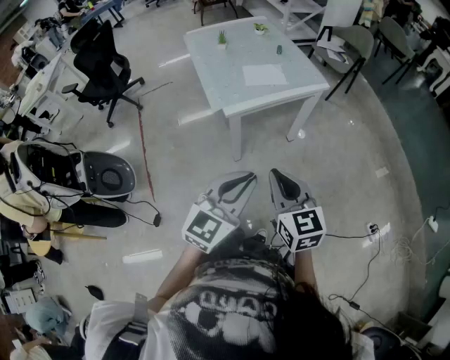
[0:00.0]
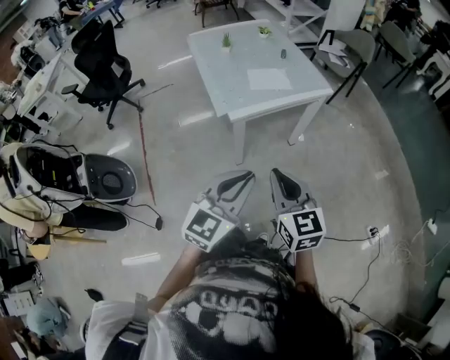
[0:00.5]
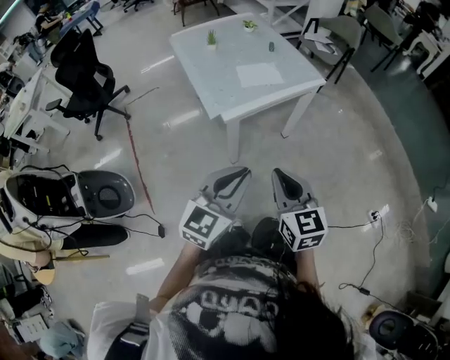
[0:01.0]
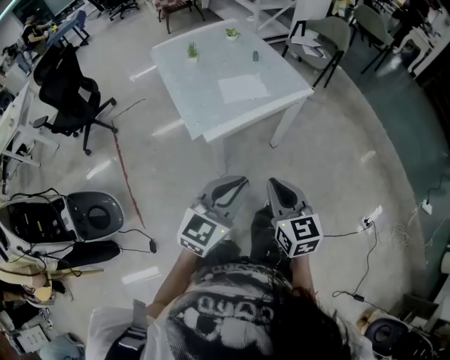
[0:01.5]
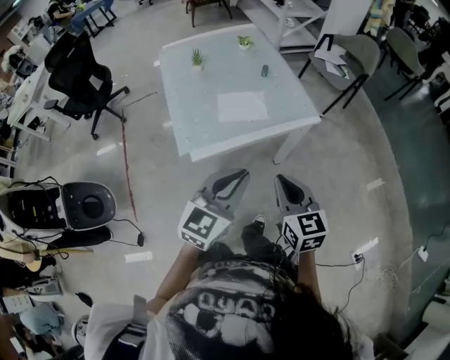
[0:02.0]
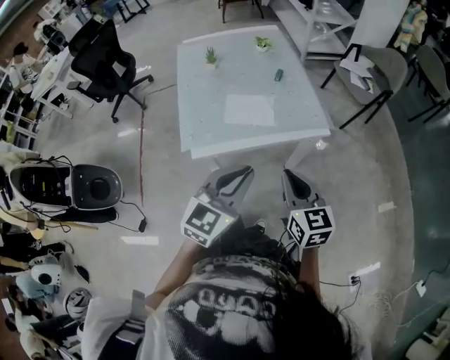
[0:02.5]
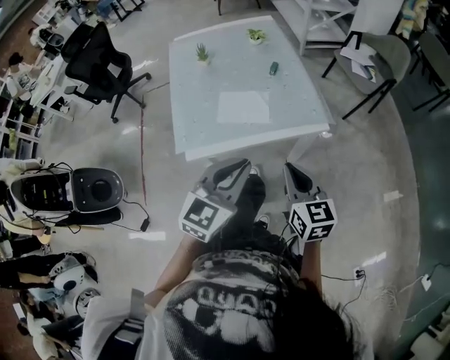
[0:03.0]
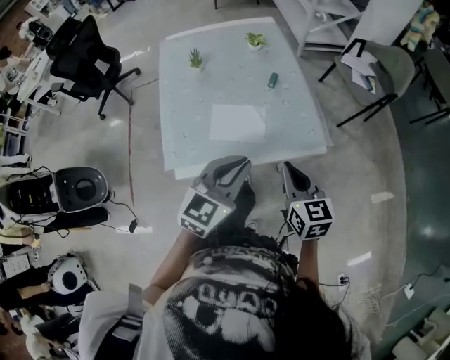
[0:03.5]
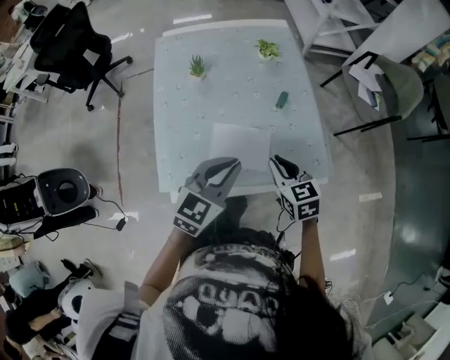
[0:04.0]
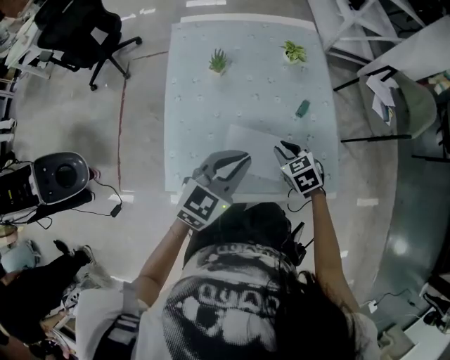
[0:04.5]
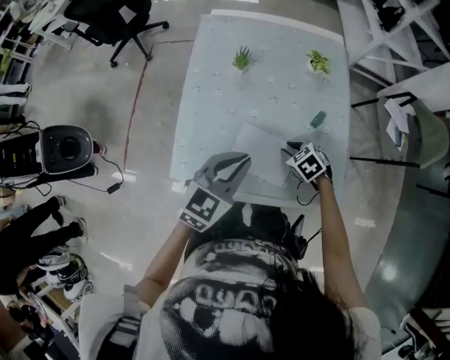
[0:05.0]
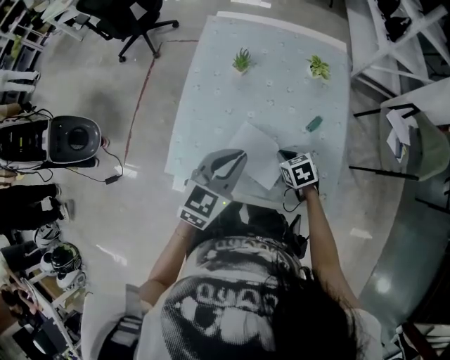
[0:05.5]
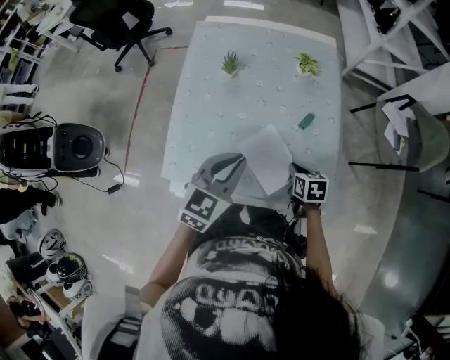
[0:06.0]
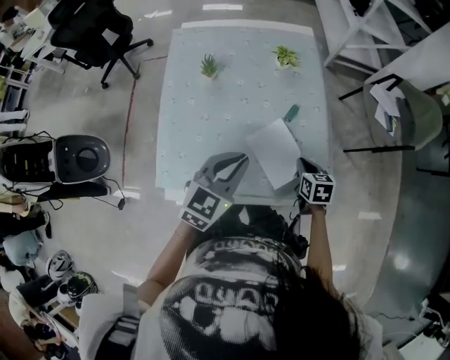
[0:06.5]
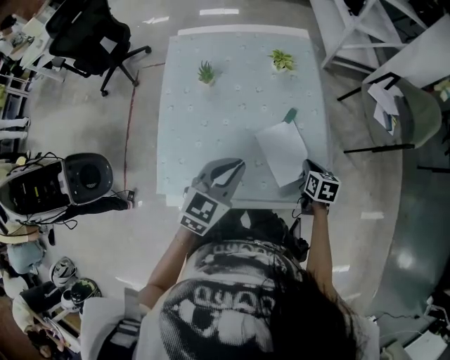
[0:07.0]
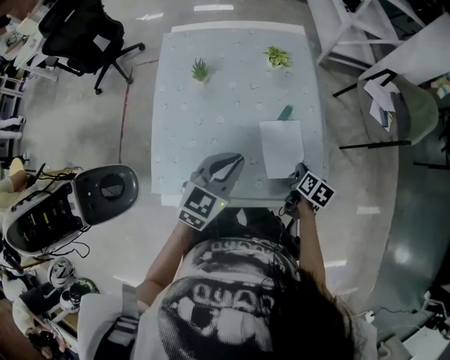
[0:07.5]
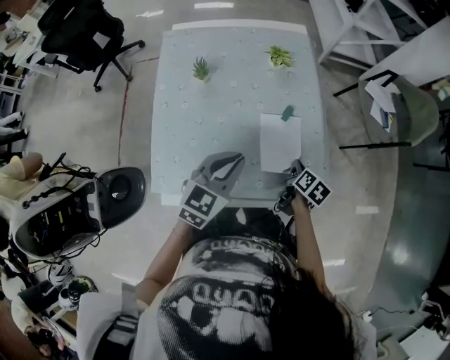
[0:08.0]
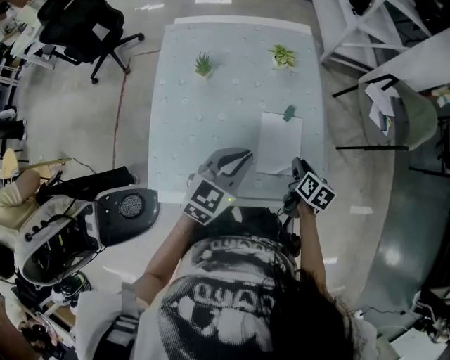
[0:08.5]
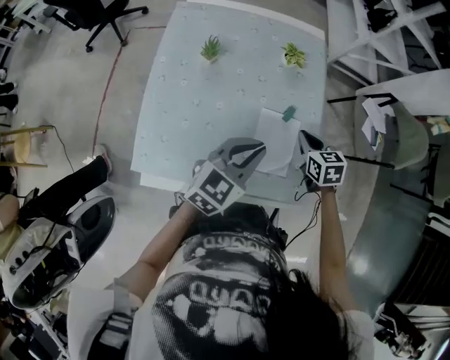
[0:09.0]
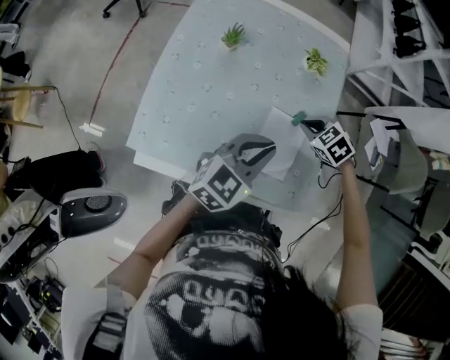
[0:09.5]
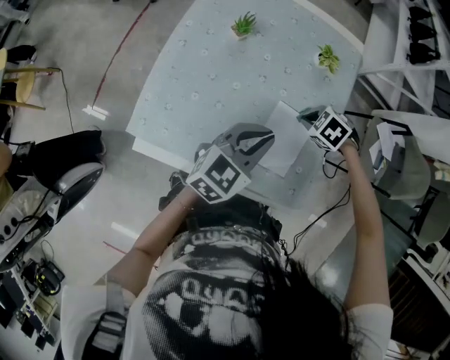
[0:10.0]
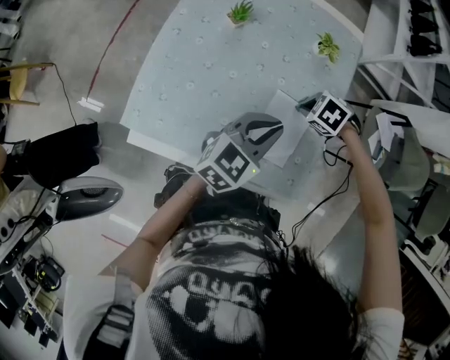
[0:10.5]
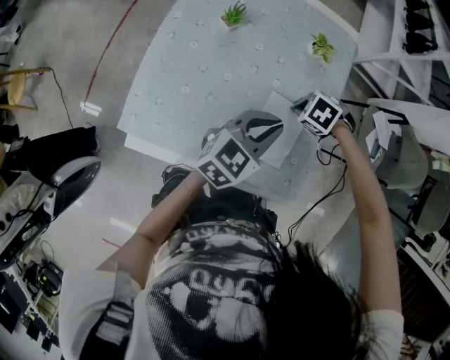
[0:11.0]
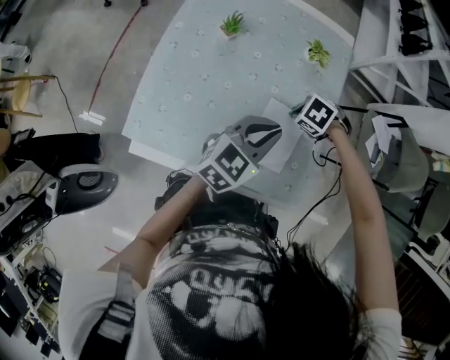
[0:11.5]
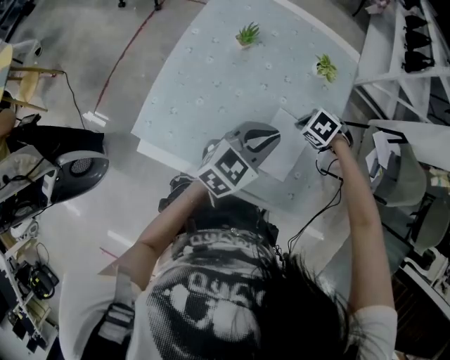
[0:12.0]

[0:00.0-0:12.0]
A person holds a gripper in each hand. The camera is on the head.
0:00.0 to 0:02.0: The two grippers go some 30 cm forward.
0:02.0 to 0:04.0: The grippers both shift forward by some 30 cm. The right gripper changes its angle by approximately 30 degrees.
0:04.0 to 0:06.0: The left gripper travels forward by some 5 cm, while the right gripper moves downward, to the right and forward, approximately 15 cm, and swivels some 30 degrees.
0:06.0 to 0:08.0: The right gripper shifts roughly 10 cm to the right, and turns by roughly 50 degrees; the left gripper changes place by approximately 5 cm.
0:08.0 to 0:10.0: The left gripper moves approximately 5 cm; the right gripper goes upward and returns, approximately 10 cm each way, rotates around the line of its fingers by some 110 degrees, counterclockwise from behind, and opens and closes again.
0:10.0 to 0:12.0: The grippers stay close to where they were, moving slightly.

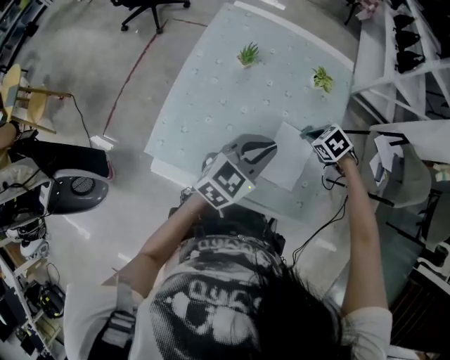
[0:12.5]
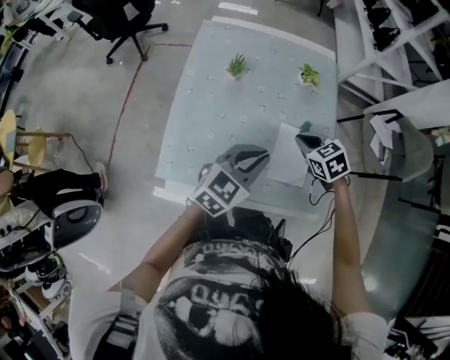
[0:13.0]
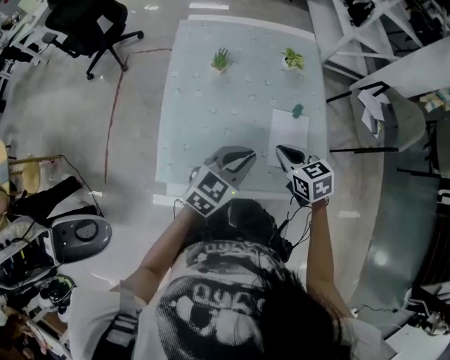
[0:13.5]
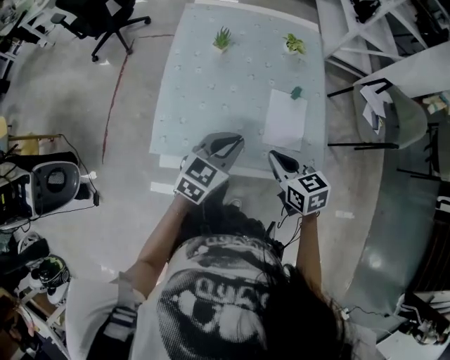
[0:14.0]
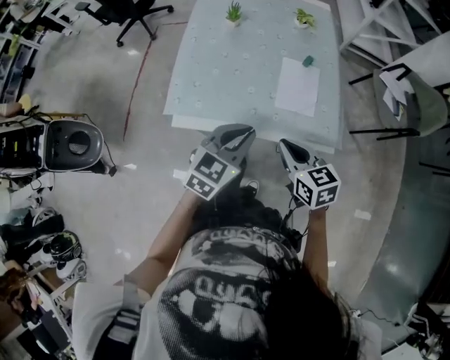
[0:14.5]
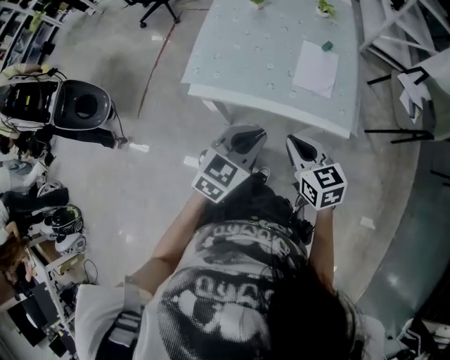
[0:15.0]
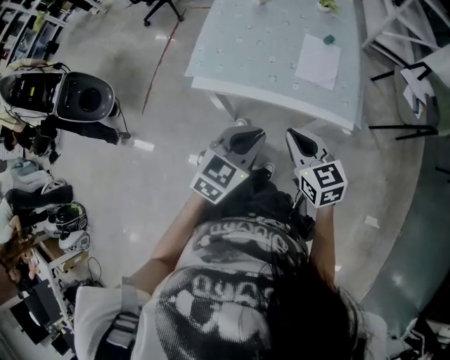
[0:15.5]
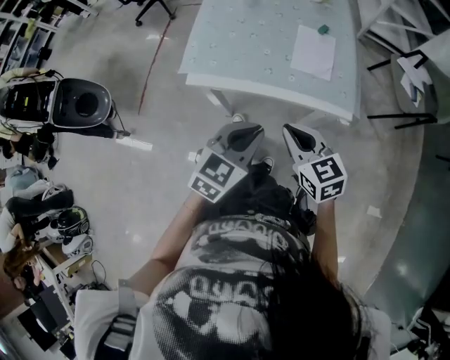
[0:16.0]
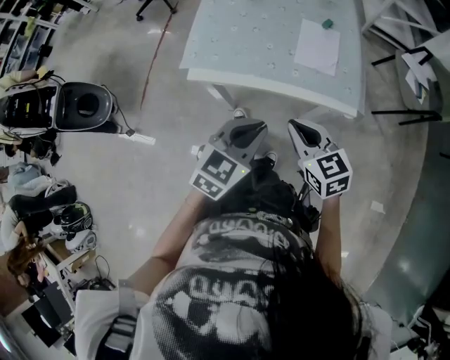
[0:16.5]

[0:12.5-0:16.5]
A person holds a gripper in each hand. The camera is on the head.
0:12.5 to 0:14.5: The left gripper moves roughly 20 cm, while the right gripper moves about 35 cm, and tips its fingers upward by about 50 degrees.
0:14.5 to 0:16.5: Both grippers move backward, approximately 10 cm.

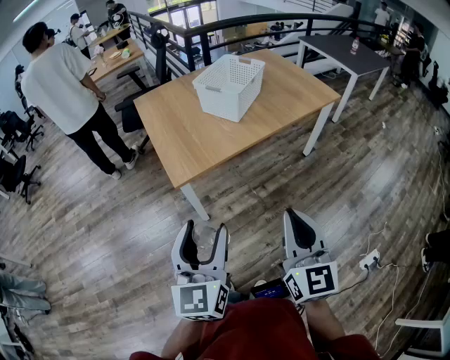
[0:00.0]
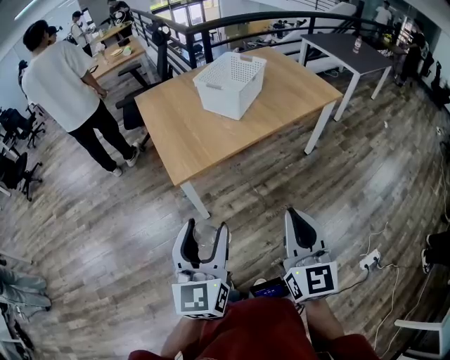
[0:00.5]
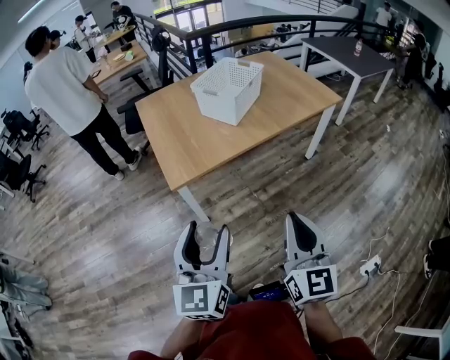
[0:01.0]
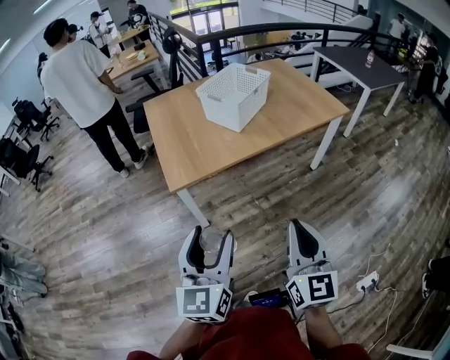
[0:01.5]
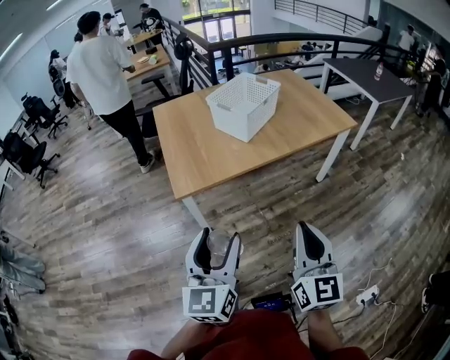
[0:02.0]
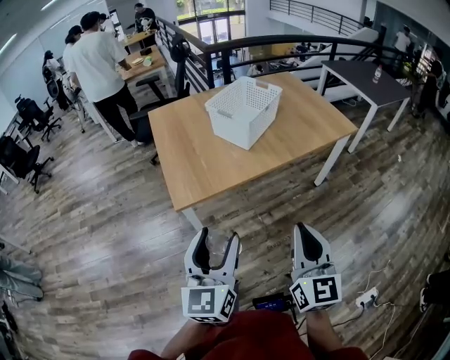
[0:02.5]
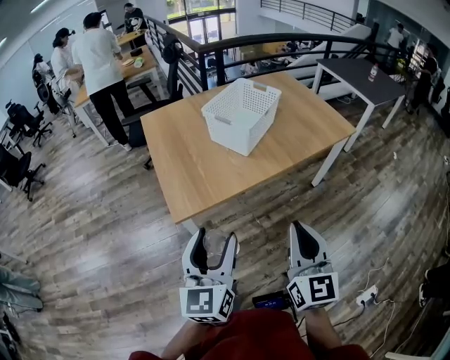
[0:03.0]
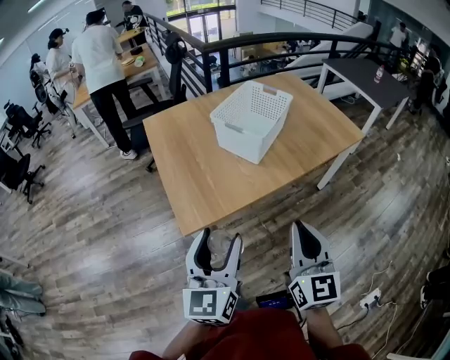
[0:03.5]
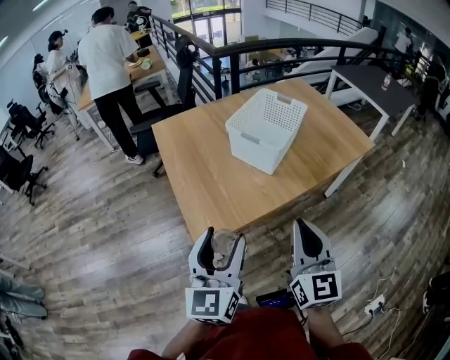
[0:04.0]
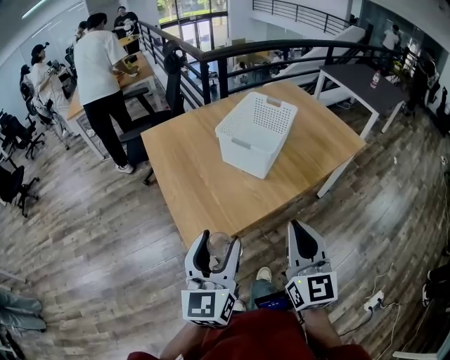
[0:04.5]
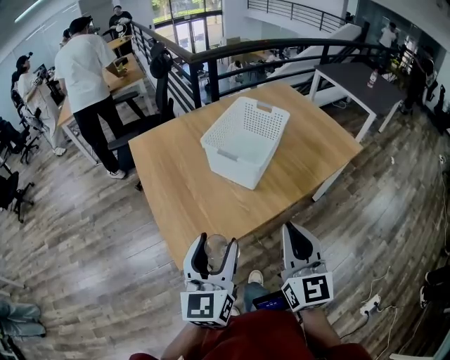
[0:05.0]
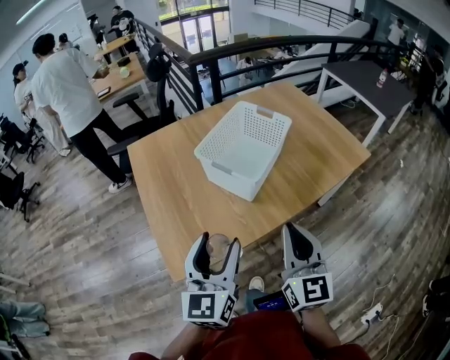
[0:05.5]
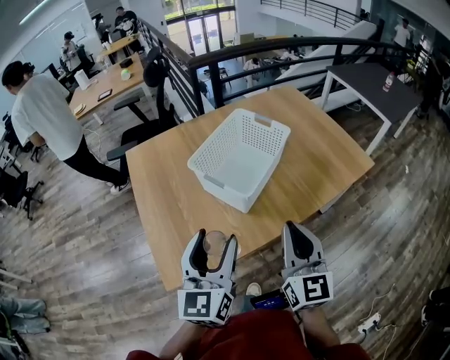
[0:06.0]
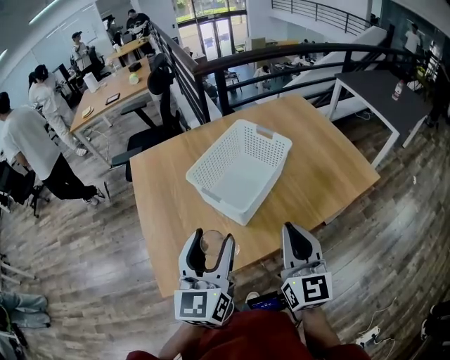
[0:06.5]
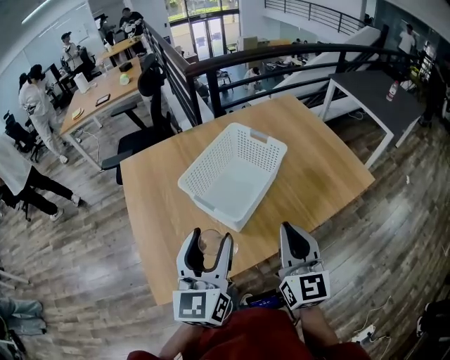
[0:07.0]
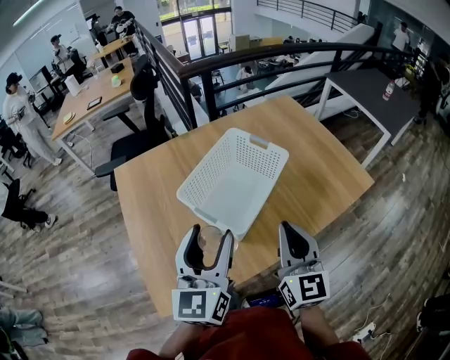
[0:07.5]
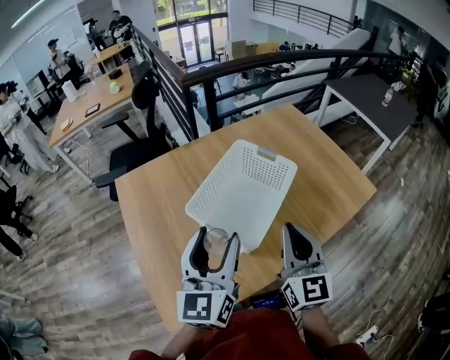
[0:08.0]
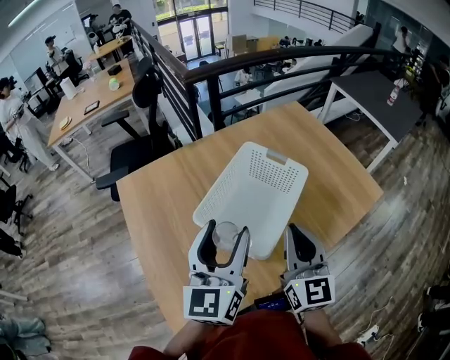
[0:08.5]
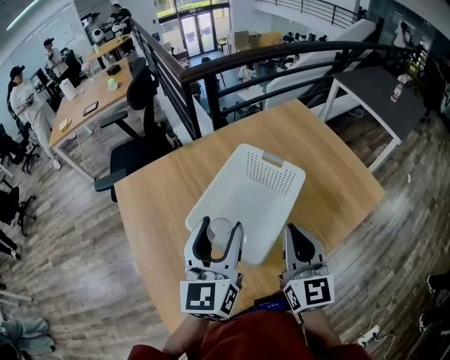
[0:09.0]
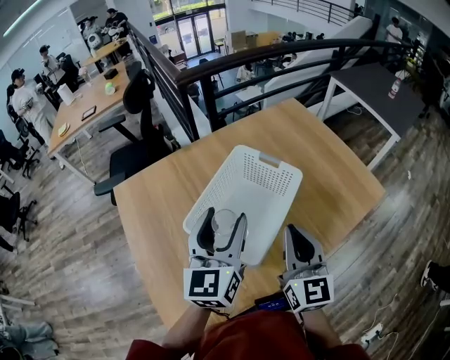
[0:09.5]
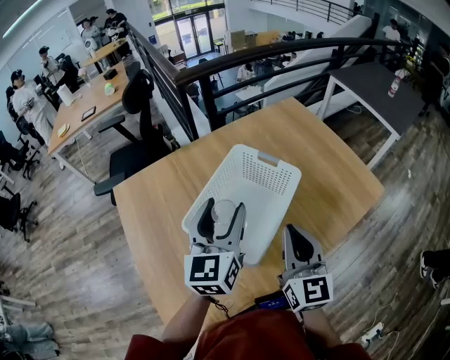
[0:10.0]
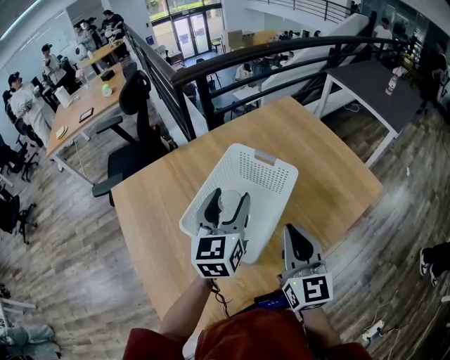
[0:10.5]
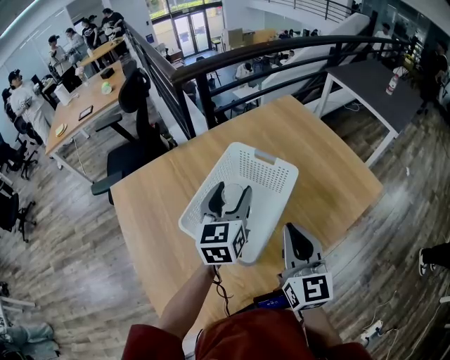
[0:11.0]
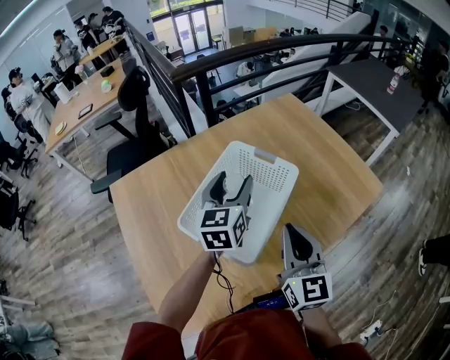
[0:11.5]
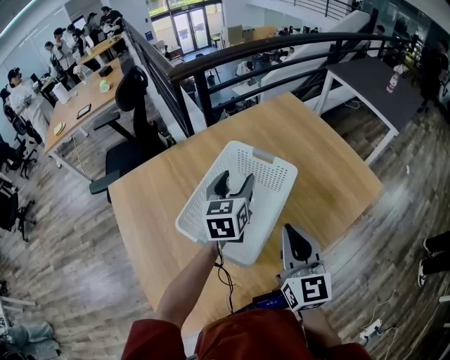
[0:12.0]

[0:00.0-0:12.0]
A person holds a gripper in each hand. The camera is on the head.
0:00.0 to 0:02.0: Both grippers move to the right, roughly 10 cm.
0:02.0 to 0:04.0: Both grippers move forward and to the left, some 25 cm.
0:04.0 to 0:06.0: The two grippers go approximately 20 cm forward and to the right.
0:06.0 to 0:08.0: The two grippers go approximately 15 cm forward.
0:08.0 to 0:10.0: The right gripper changes place by approximately 5 cm. Meanwhile the left gripper is displaced forward by roughly 10 cm.
0:10.0 to 0:12.0: The left gripper heads forward and downward, covering some 15 cm.
